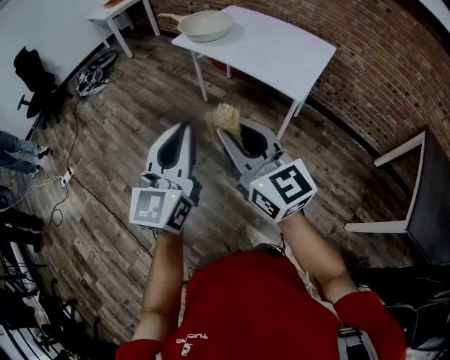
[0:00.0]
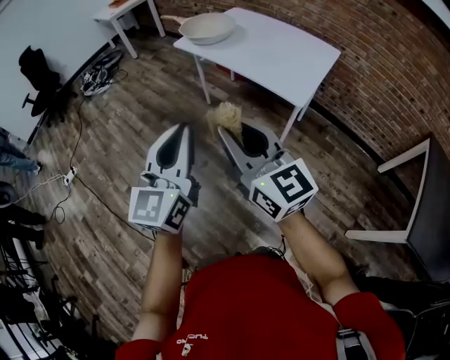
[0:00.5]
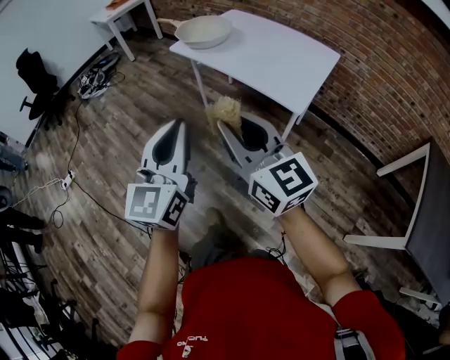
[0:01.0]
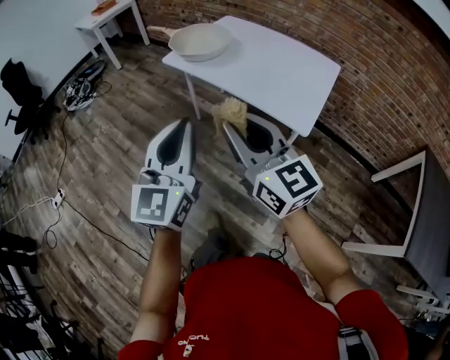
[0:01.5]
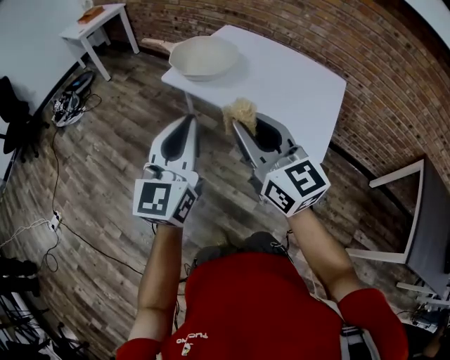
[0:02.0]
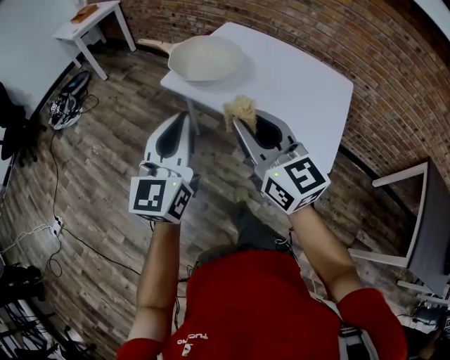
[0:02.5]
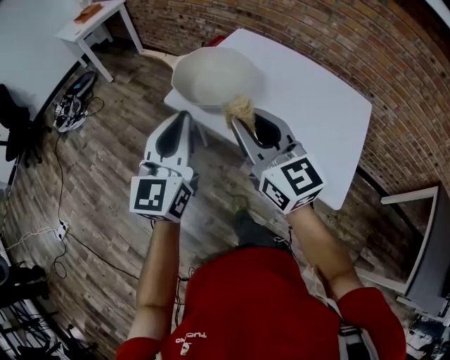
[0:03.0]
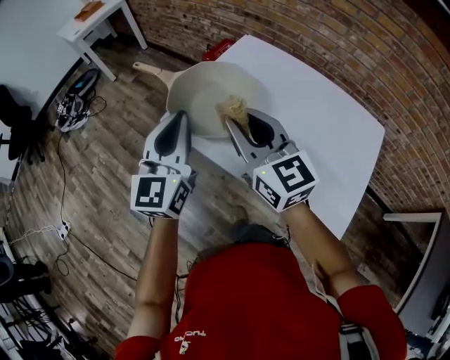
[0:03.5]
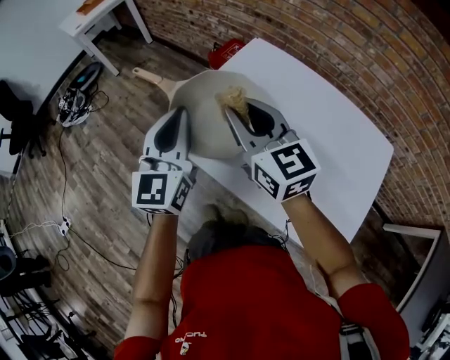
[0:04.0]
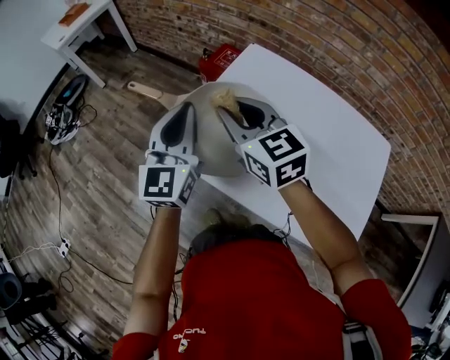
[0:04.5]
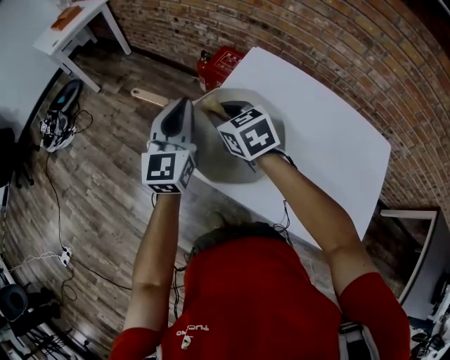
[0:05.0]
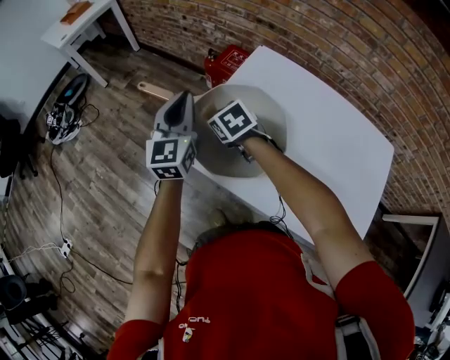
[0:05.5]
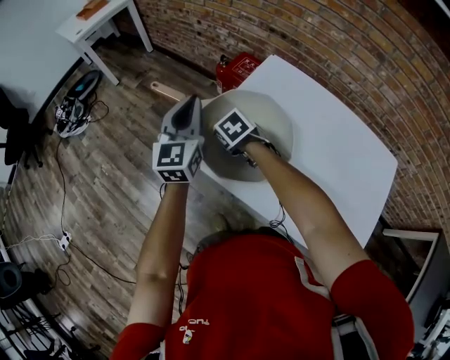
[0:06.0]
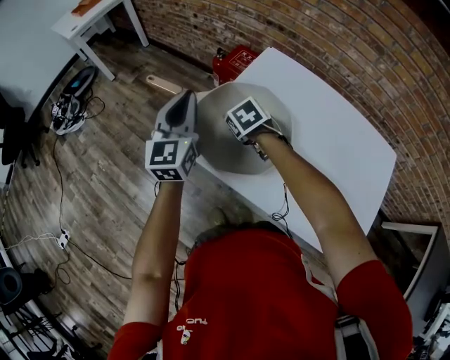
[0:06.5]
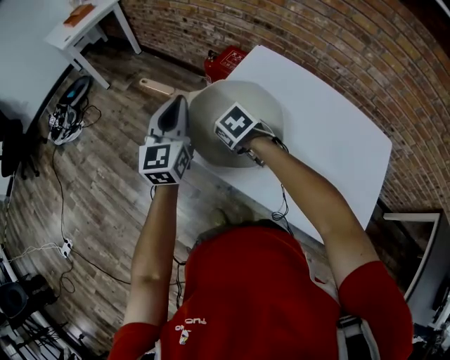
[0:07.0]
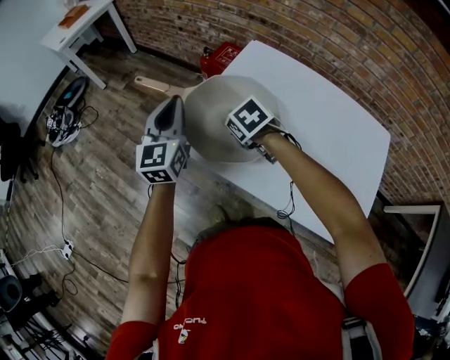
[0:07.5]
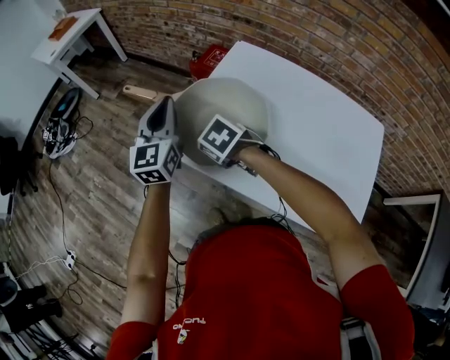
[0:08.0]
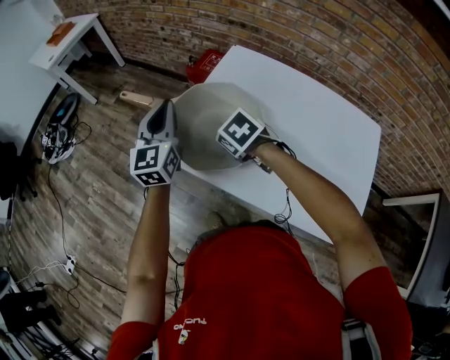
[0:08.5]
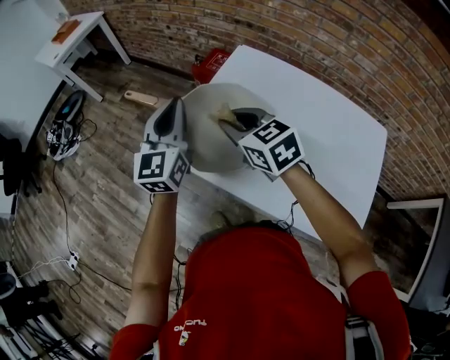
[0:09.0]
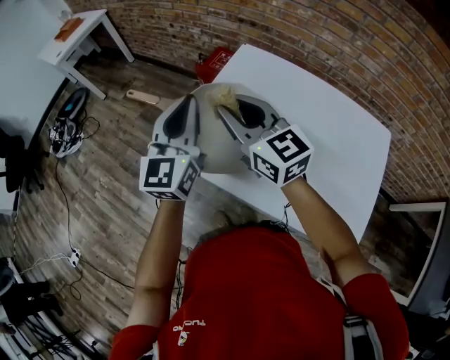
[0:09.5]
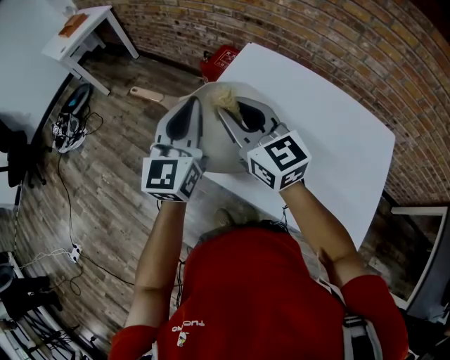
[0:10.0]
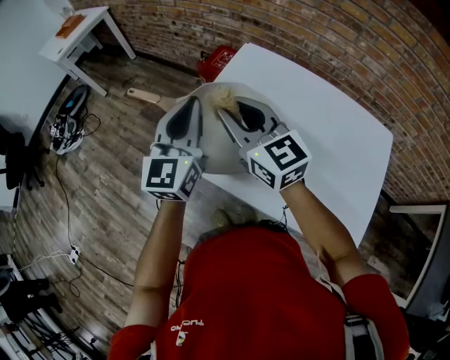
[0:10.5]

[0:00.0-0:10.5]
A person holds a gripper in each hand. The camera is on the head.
0:00.0 to 0:02.0: The grippers both shift forward by roughly 35 cm.
0:02.0 to 0:04.0: The two grippers travel together, forward, some 50 cm.
0:04.0 to 0:06.5: The left gripper is displaced forward, to the left and downward by approximately 15 cm, while the right gripper is displaced downward and forward by some 30 cm, and tilts its fingers about 60 degrees downward.
0:06.5 to 0:08.5: The right gripper goes some 10 cm backward.
0:08.5 to 0:10.5: The left gripper is displaced upward and to the right by some 10 cm. Meanwhile the right gripper travels upward by about 20 cm, and points its fingers approximately 60 degrees further upward.

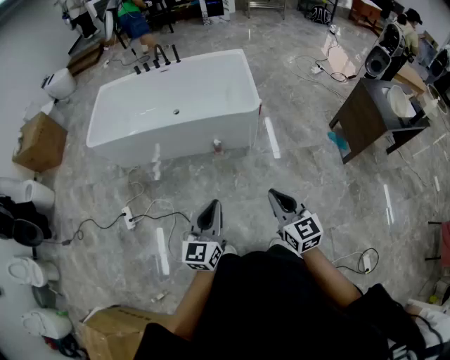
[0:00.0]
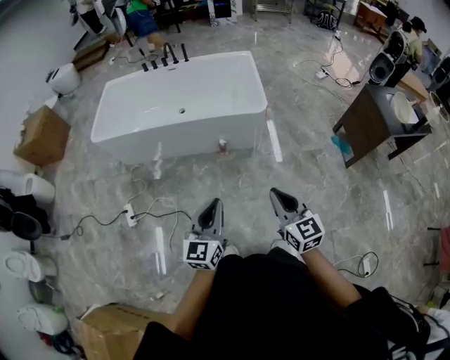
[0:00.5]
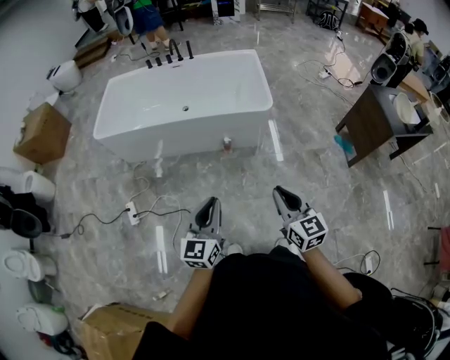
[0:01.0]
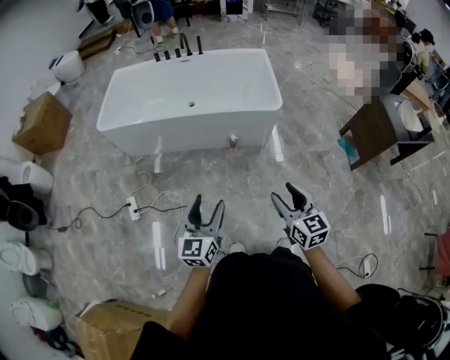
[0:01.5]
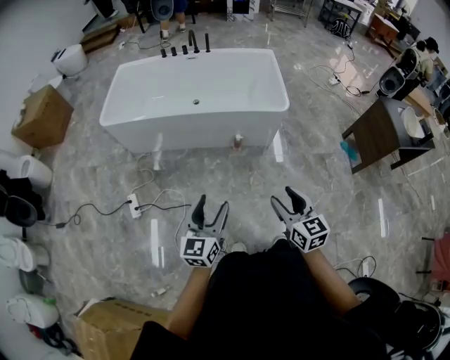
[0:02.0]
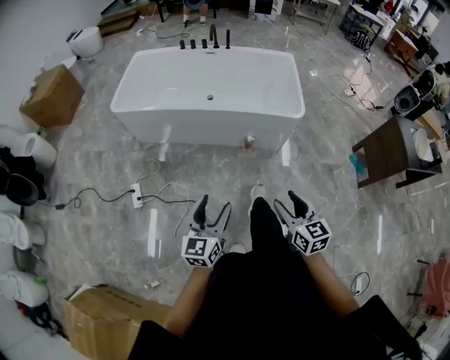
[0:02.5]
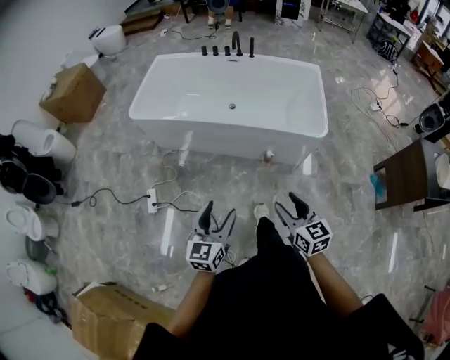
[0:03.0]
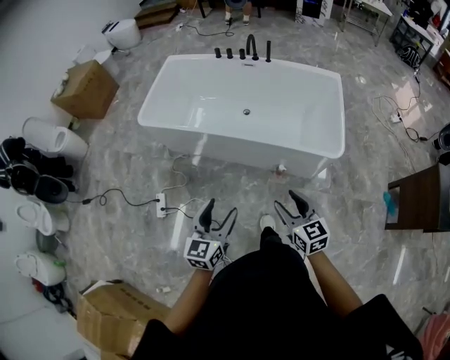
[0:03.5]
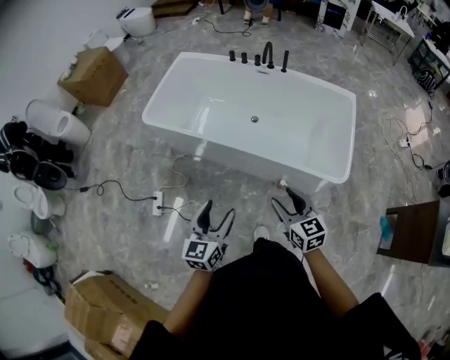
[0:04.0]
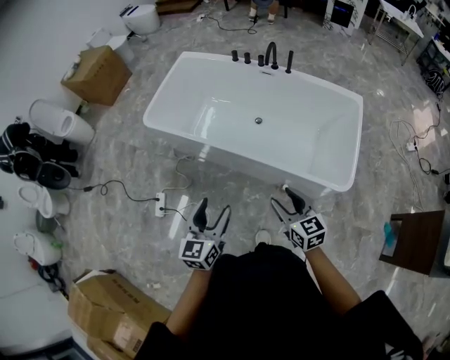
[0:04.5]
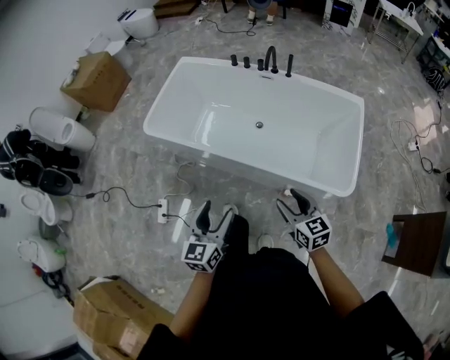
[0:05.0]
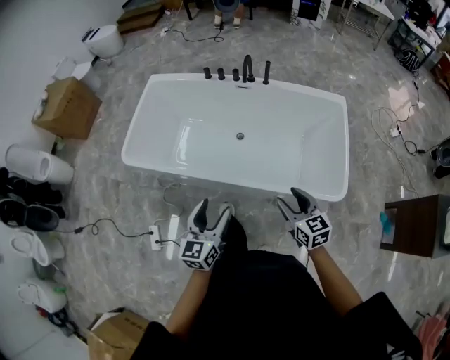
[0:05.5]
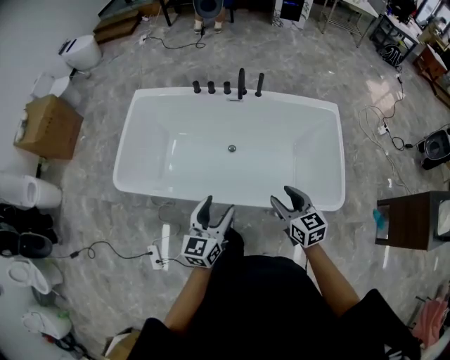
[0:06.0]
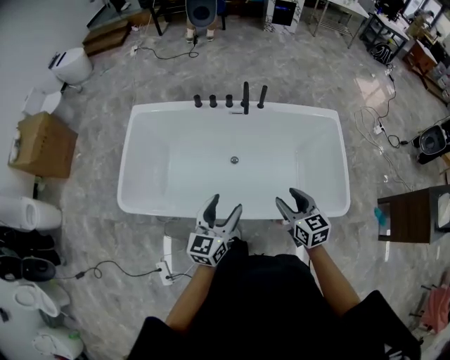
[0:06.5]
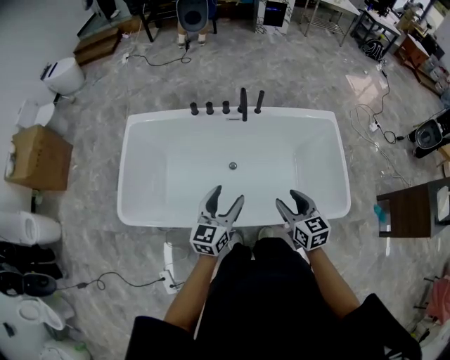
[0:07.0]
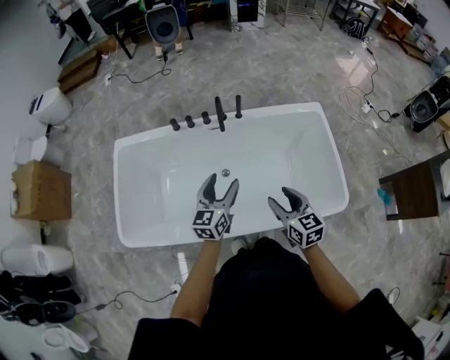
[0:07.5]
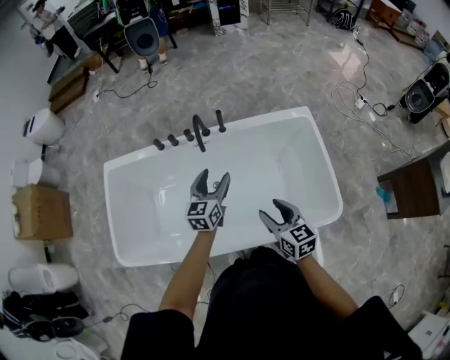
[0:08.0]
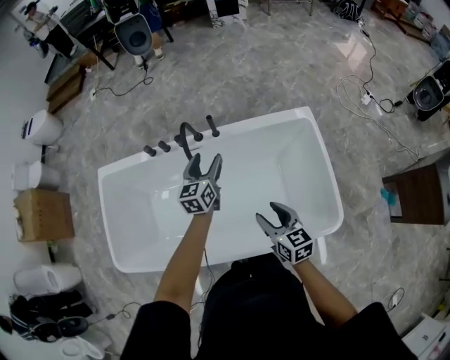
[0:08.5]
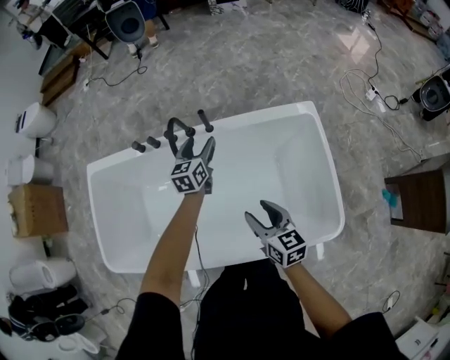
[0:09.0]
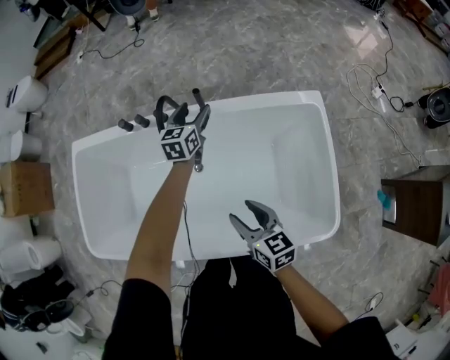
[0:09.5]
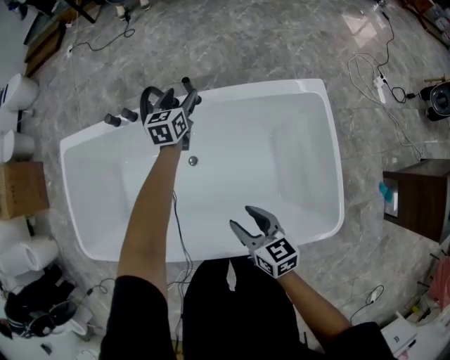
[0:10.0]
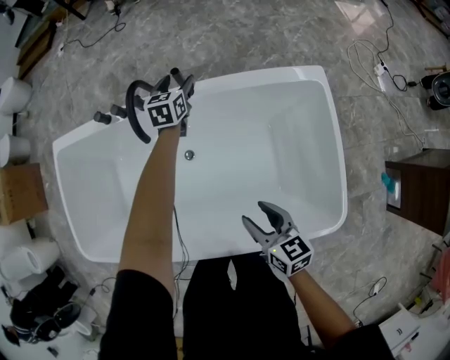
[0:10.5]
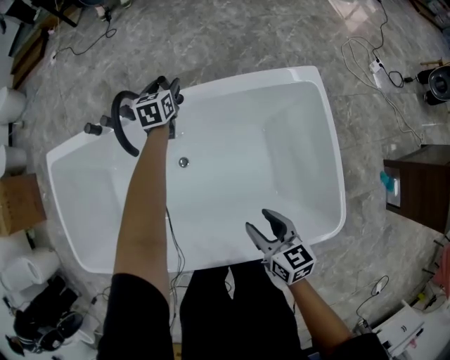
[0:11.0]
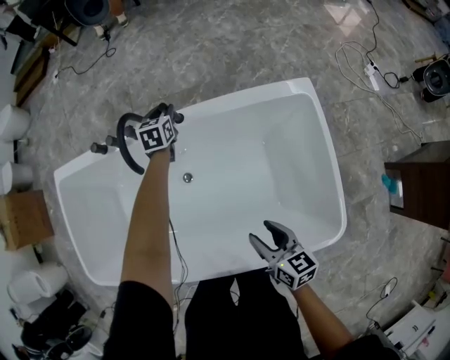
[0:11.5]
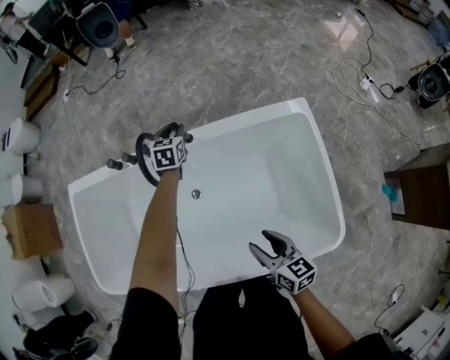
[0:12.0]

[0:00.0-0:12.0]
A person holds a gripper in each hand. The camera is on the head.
0:00.0 to 0:02.0: The two grippers go roughly 15 cm to the left. The left gripper opens its fingers. Meanwhile the right gripper opens up.
0:02.0 to 0:04.0: Both grippers travel together forward, approximately 35 cm. The left gripper changes its angle by roughly 20 degrees. Meanwhile the right gripper swivels about 20 degrees.
0:04.0 to 0:06.0: Both grippers travel together forward, approximately 30 cm.
0:06.0 to 0:08.0: The left gripper goes some 35 cm forward, while the right gripper shifts some 15 cm forward.
0:08.0 to 0:10.0: The right gripper travels downward and forward by about 20 cm. Meanwhile the left gripper moves forward and downward, about 35 cm.
0:10.0 to 0:12.0: The right gripper goes some 5 cm to the right. The left gripper moves some 10 cm downward and comes back, and closes up.

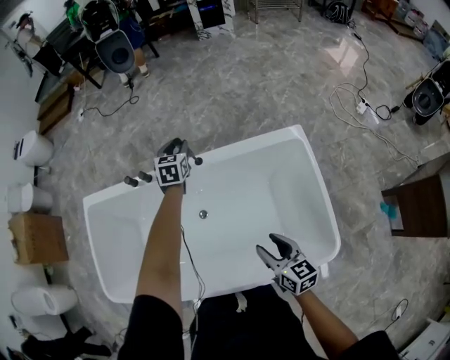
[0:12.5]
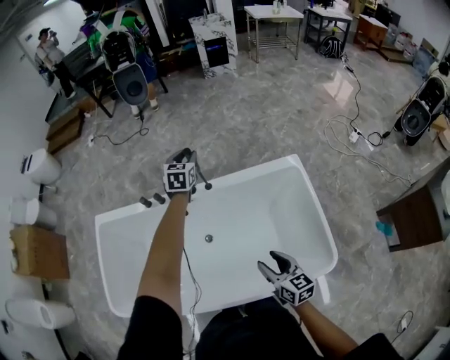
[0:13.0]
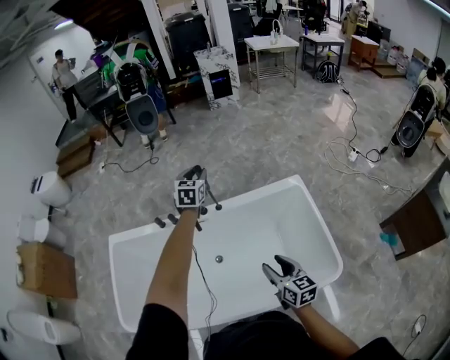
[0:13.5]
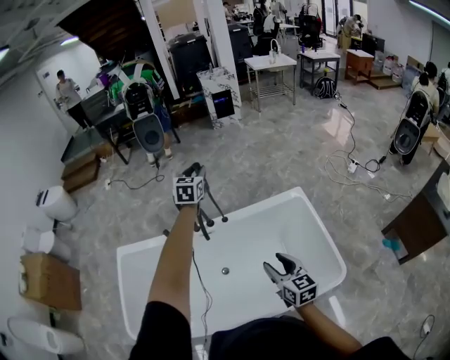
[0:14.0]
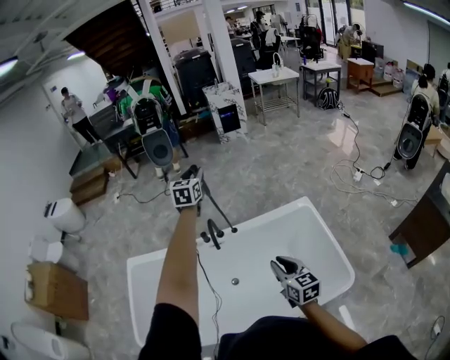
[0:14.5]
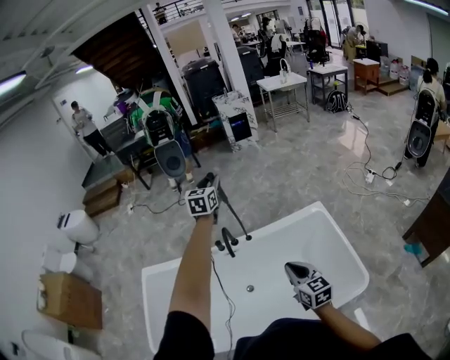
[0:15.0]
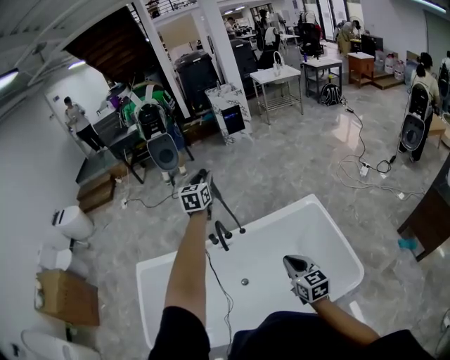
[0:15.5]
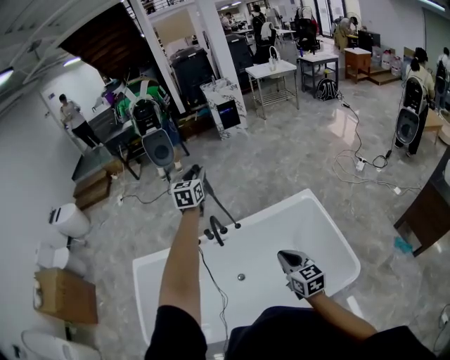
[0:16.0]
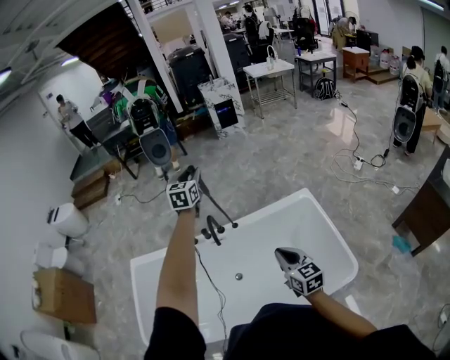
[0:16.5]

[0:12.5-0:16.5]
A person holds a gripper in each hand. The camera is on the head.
0:12.5 to 0:14.5: The right gripper travels upward and to the left by roughly 20 cm, and closes. Meanwhile the left gripper goes some 35 cm upward, and swivels some 20 degrees.
0:14.5 to 0:16.5: There are only small adjustments of the grippers.
